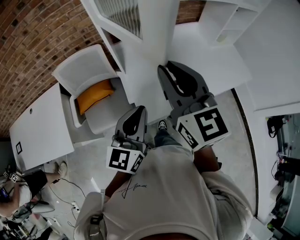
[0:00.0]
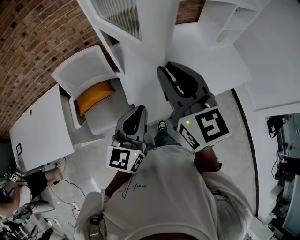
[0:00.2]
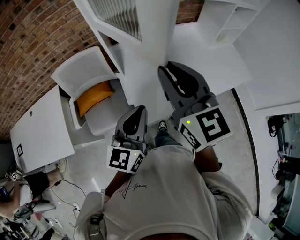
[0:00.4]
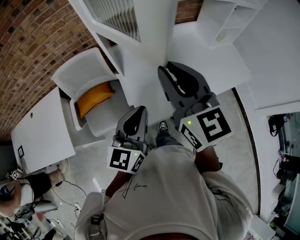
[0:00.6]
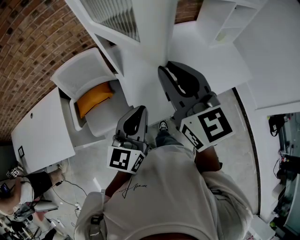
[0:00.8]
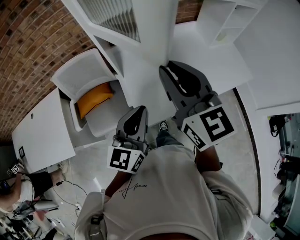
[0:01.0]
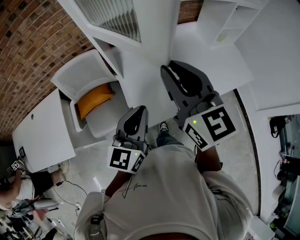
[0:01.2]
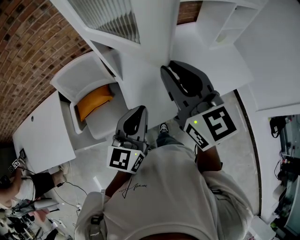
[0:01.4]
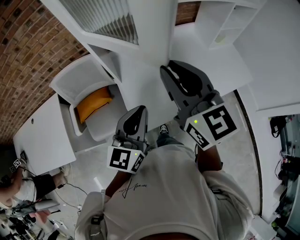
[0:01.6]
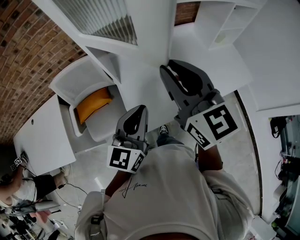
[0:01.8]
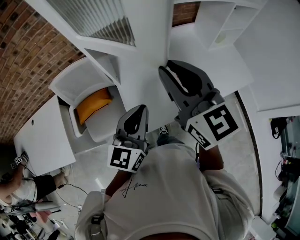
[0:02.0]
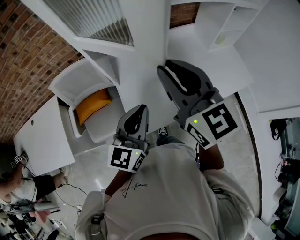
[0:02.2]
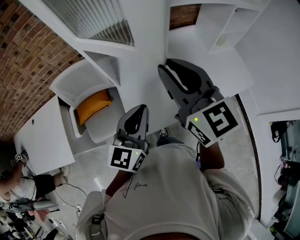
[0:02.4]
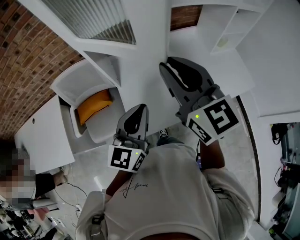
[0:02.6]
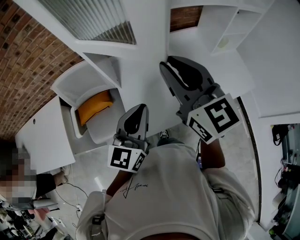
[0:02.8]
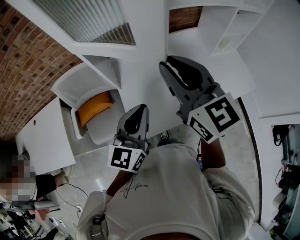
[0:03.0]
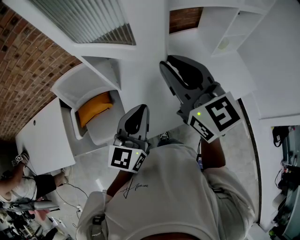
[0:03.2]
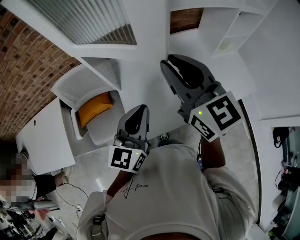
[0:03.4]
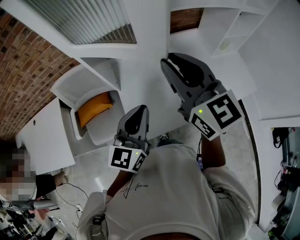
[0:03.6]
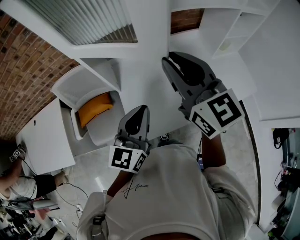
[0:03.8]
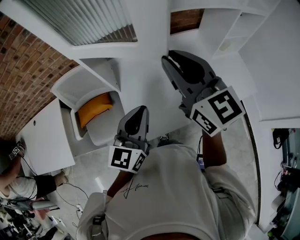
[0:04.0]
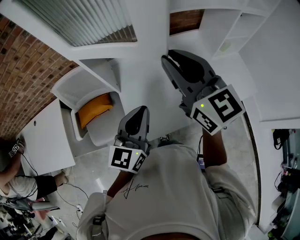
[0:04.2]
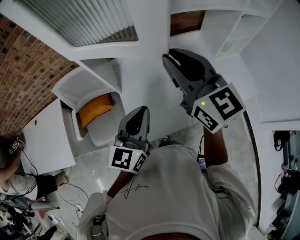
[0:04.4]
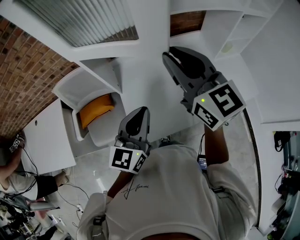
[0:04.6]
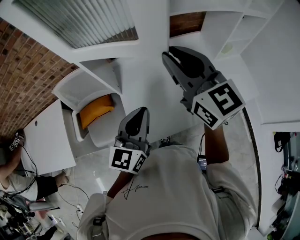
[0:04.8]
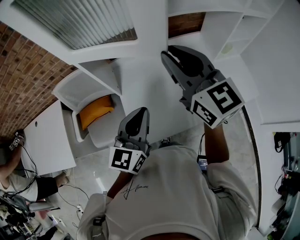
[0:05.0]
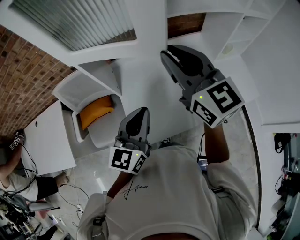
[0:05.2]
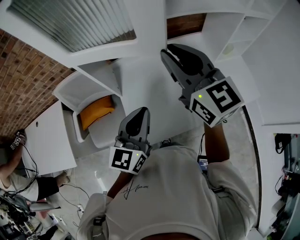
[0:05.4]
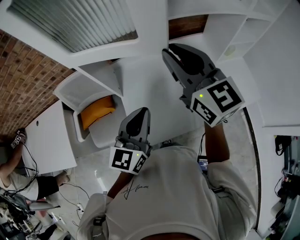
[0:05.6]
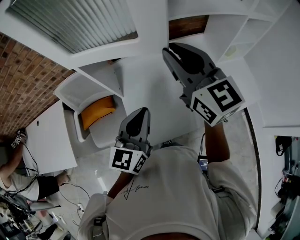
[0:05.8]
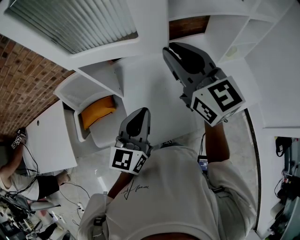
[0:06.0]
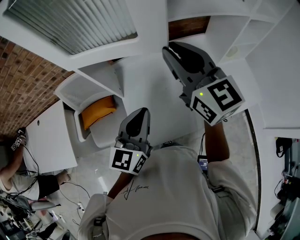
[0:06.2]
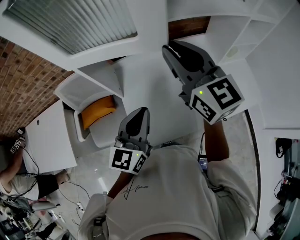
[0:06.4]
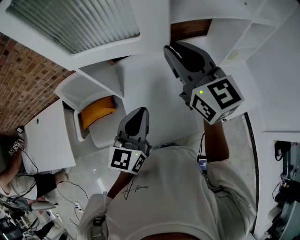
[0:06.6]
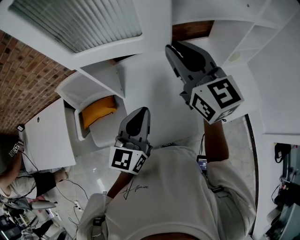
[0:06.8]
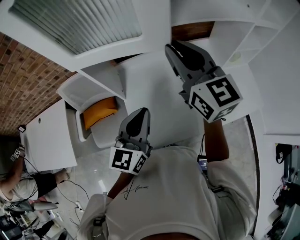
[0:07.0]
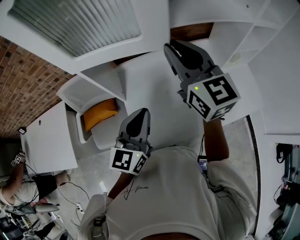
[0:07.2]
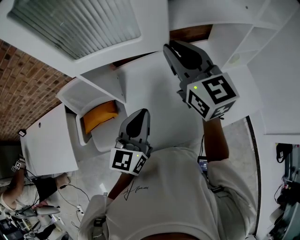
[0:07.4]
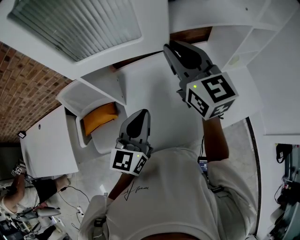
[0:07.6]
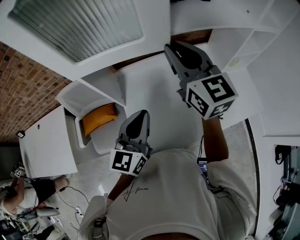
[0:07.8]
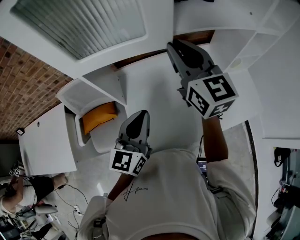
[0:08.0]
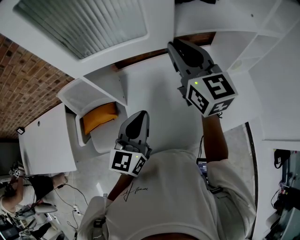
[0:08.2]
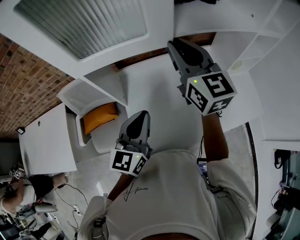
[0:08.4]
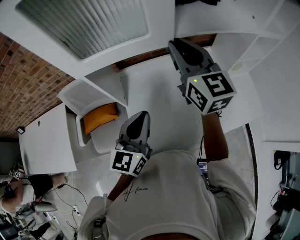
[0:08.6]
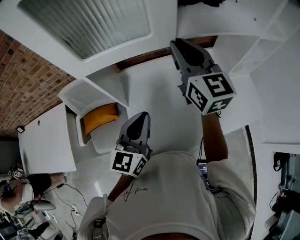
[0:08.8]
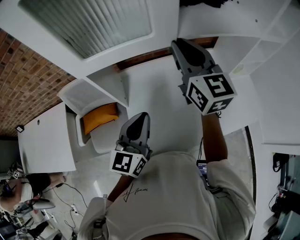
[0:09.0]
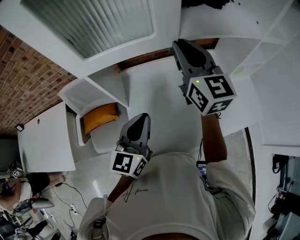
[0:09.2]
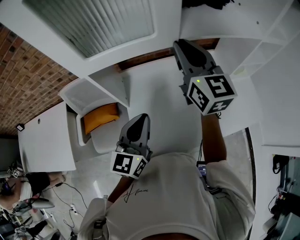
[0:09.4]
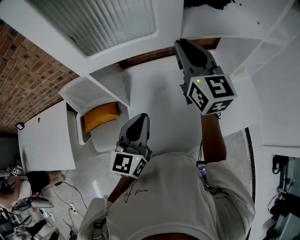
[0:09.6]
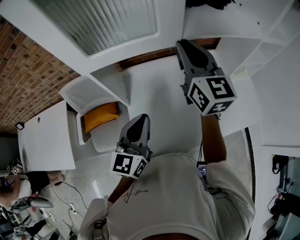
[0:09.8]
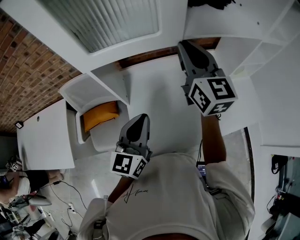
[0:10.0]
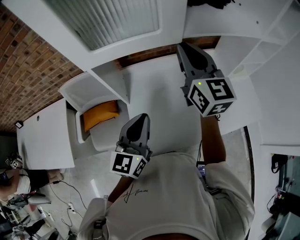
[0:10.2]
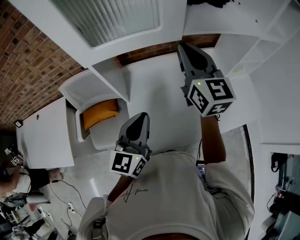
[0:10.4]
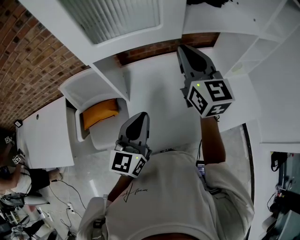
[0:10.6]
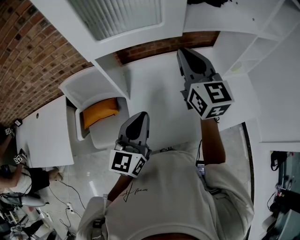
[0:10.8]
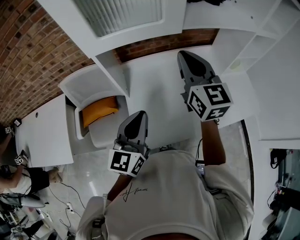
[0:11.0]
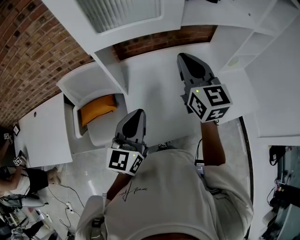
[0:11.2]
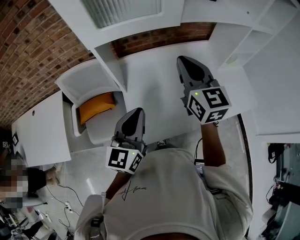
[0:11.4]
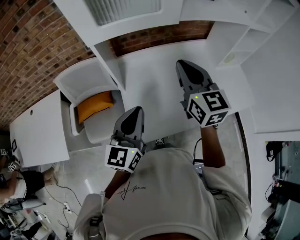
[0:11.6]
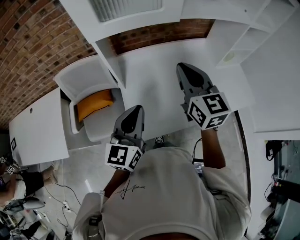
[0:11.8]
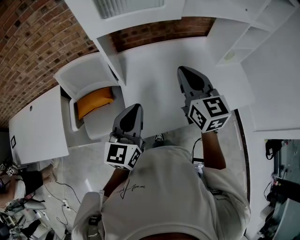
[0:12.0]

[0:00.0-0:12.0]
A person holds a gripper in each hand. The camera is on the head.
0:00.0 to 0:01.6: The left gripper goes some 5 cm forward; the right gripper moves about 5 cm.
0:01.6 to 0:03.0: The right gripper changes place by some 5 cm. The left gripper ends up approximately 5 cm from where it was.
0:03.0 to 0:04.4: The right gripper moves approximately 5 cm.
0:04.4 to 0:06.0: The right gripper travels forward by some 5 cm.
0:06.0 to 0:07.6: The right gripper travels forward by about 5 cm.
0:07.6 to 0:10.4: The grippers make only small movements.
0:10.4 to 0:12.0: The right gripper travels backward and downward by about 15 cm; the left gripper travels backward by roughly 5 cm.

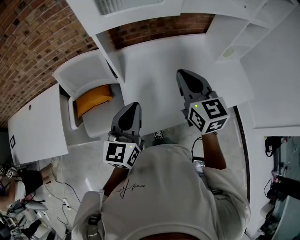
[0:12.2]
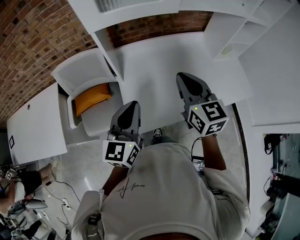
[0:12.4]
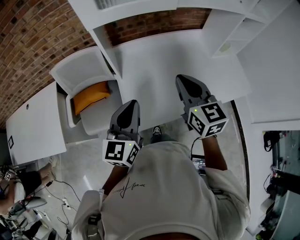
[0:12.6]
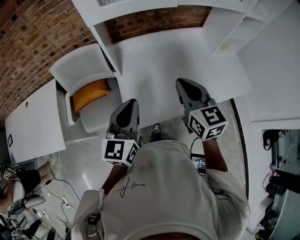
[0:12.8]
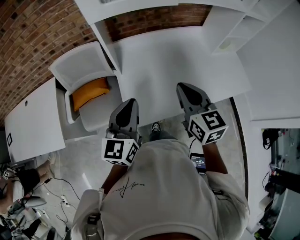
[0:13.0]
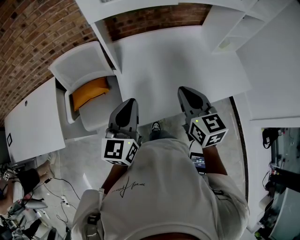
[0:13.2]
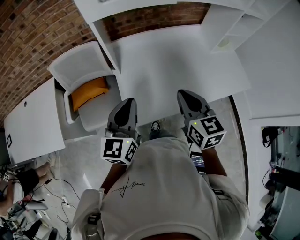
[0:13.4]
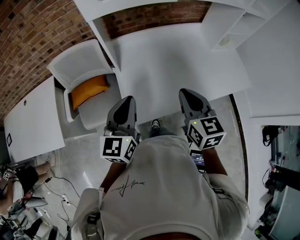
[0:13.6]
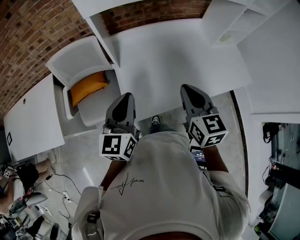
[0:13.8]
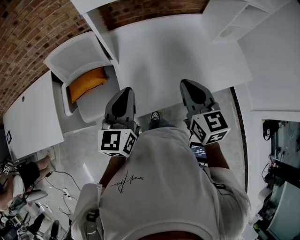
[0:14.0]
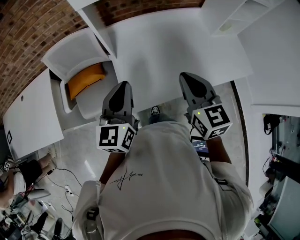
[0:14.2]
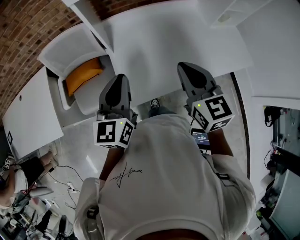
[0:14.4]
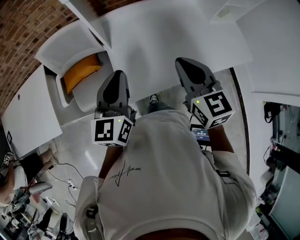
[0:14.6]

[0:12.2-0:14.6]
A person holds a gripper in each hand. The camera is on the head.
0:12.2 to 0:13.4: The right gripper goes some 10 cm backward and downward.
0:13.4 to 0:14.6: The grippers stay close to where they were, moving slightly.

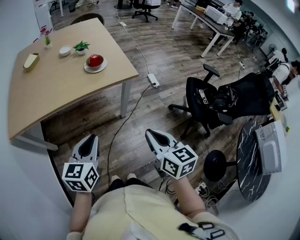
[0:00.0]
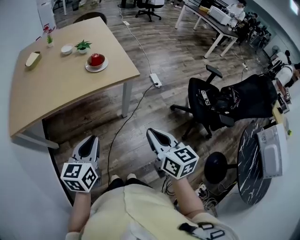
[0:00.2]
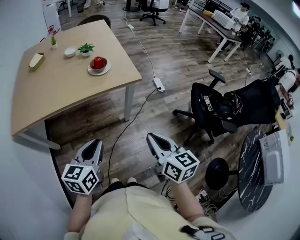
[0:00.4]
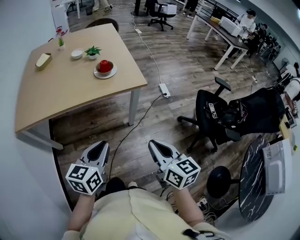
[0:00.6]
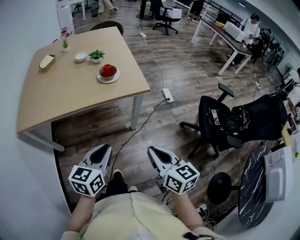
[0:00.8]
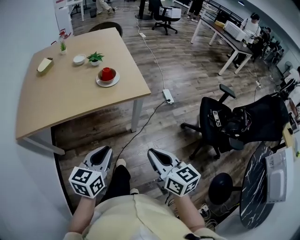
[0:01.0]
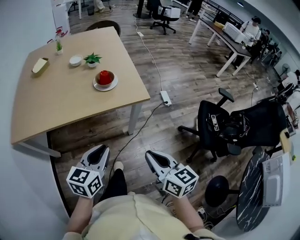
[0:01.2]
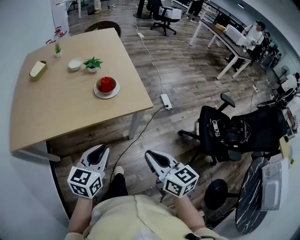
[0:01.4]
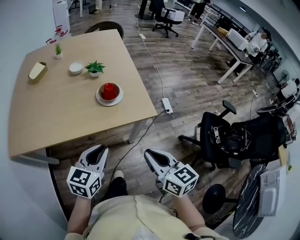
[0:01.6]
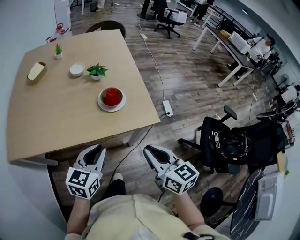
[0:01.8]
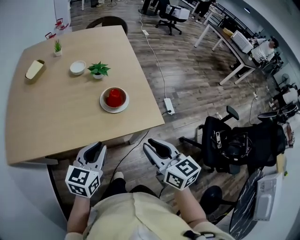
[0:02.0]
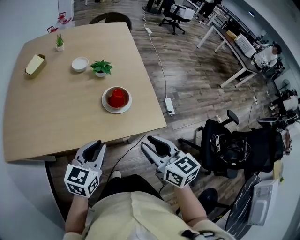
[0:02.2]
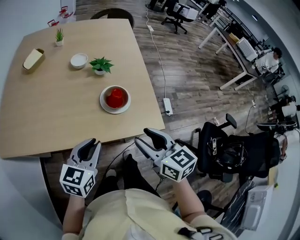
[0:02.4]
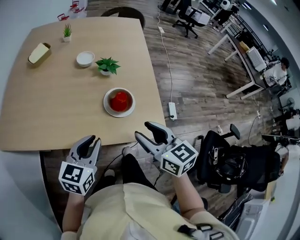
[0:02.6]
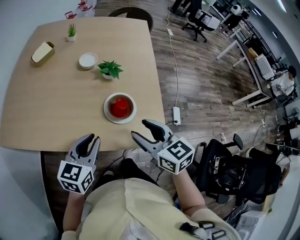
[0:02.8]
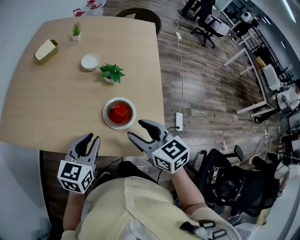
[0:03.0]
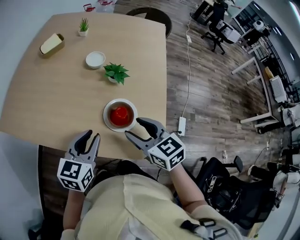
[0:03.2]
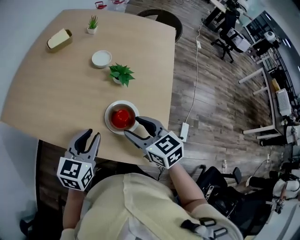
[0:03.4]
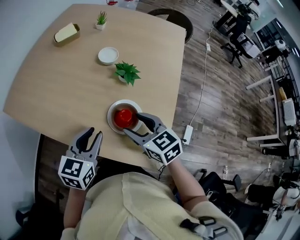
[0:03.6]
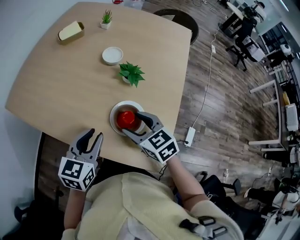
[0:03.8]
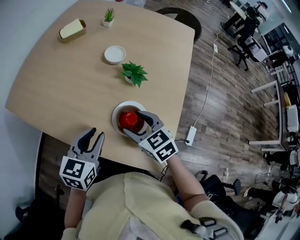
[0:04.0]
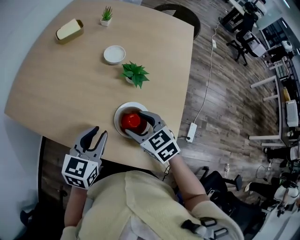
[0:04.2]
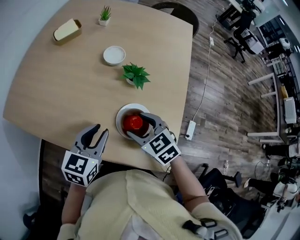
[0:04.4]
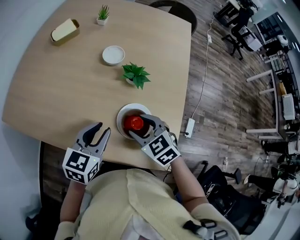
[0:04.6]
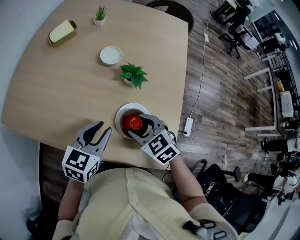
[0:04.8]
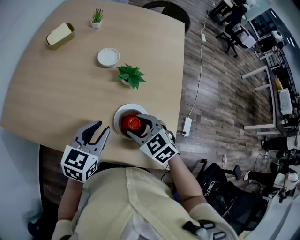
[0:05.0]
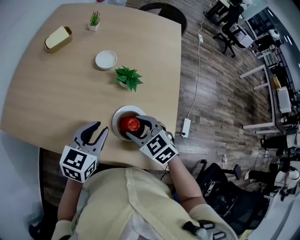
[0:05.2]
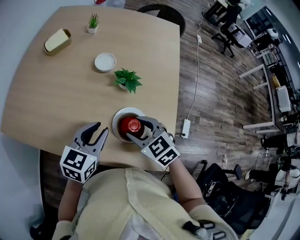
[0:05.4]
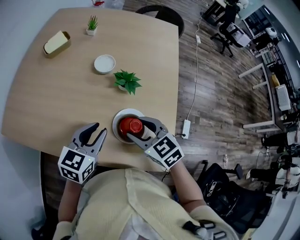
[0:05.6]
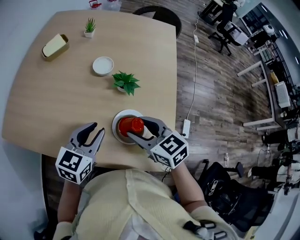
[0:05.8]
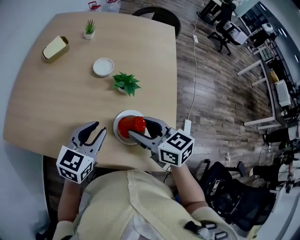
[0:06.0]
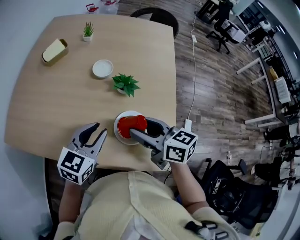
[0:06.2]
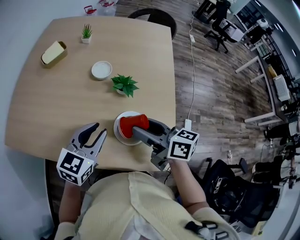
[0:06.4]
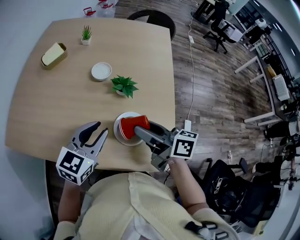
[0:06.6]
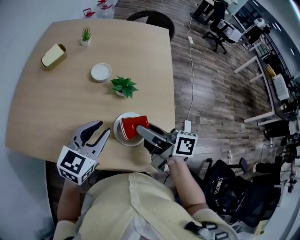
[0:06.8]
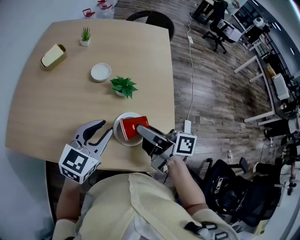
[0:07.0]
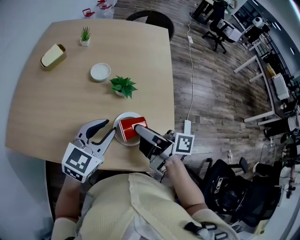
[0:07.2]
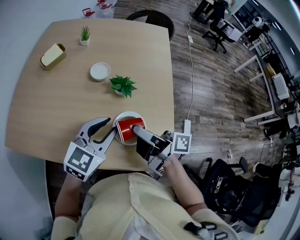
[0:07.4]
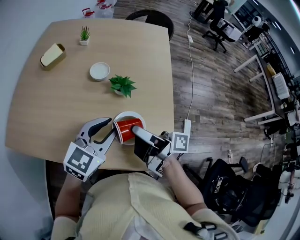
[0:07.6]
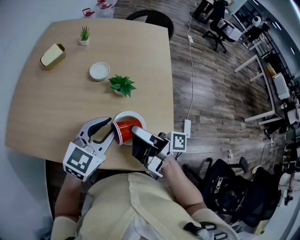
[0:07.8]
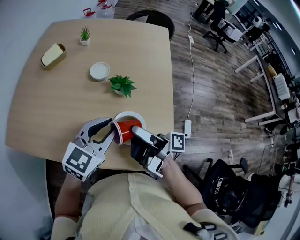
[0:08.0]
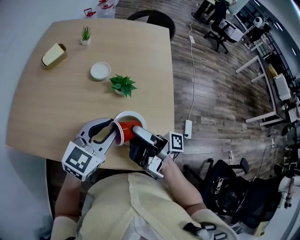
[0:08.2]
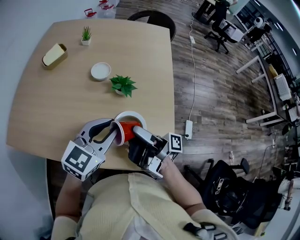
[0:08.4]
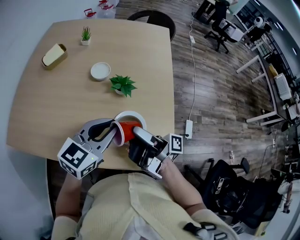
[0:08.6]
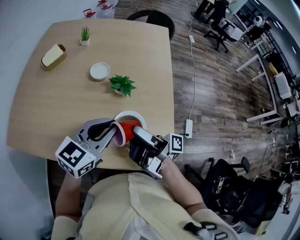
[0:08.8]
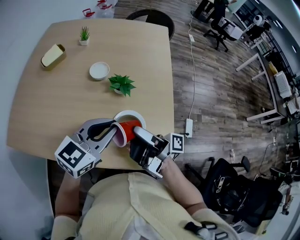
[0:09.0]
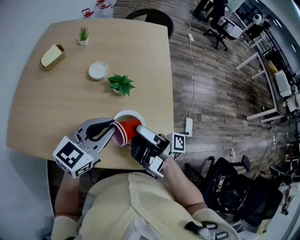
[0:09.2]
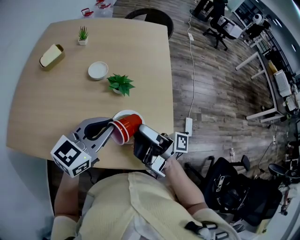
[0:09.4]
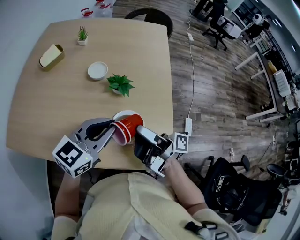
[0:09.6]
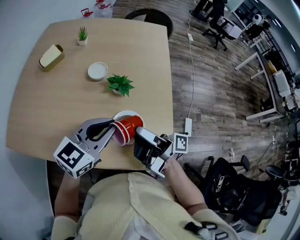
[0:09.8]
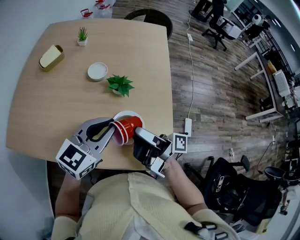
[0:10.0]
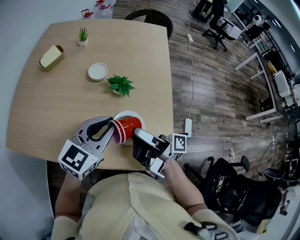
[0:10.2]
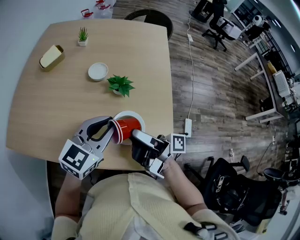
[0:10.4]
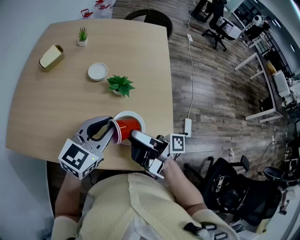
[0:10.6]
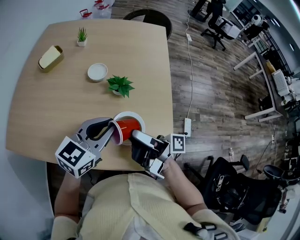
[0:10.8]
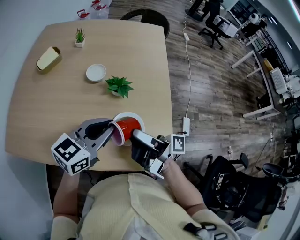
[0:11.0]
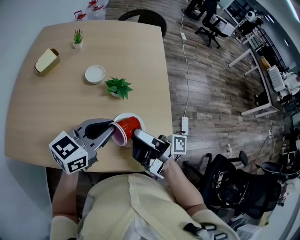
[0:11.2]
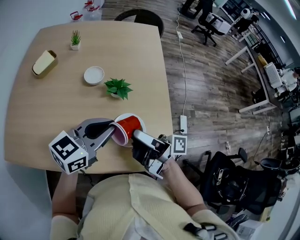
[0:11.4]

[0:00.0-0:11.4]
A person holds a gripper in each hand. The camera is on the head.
0:00.0 to 0:01.4: The two grippers go approximately 15 cm forward.
0:01.4 to 0:02.8: Both grippers travel together forward, some 25 cm. The right gripper changes its angle by about 30 degrees, and opens up.
0:02.8 to 0:04.2: The right gripper is displaced forward and downward by roughly 15 cm, and turns by some 30 degrees. Meanwhile the left gripper goes about 5 cm forward.
0:04.2 to 0:05.6: The grippers make only small movements.
0:05.6 to 0:07.2: The grippers both shift upward by roughly 5 cm. The right gripper twists approximately 70 degrees clockwise, seen from behind.
0:07.2 to 0:08.6: The right gripper changes its angle by approximately 30 degrees.
0:08.6 to 0:11.4: The grippers make only small movements.
